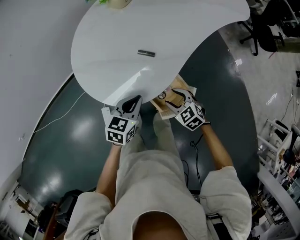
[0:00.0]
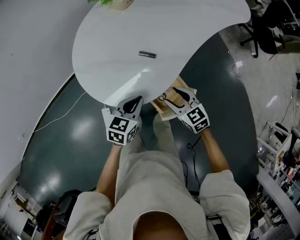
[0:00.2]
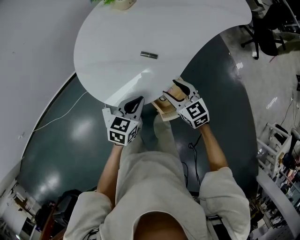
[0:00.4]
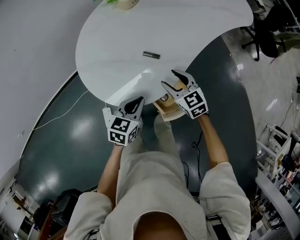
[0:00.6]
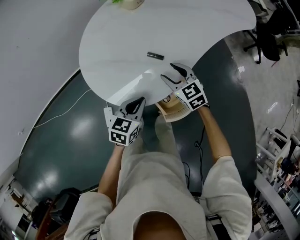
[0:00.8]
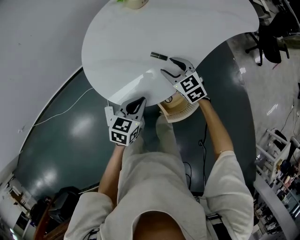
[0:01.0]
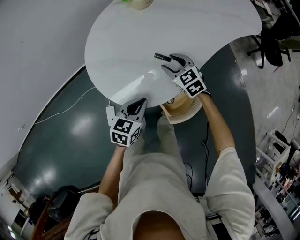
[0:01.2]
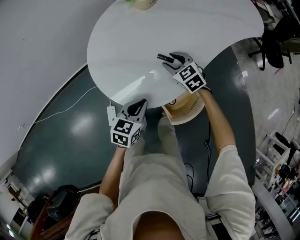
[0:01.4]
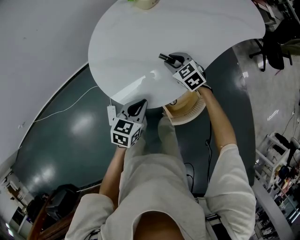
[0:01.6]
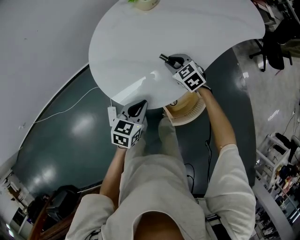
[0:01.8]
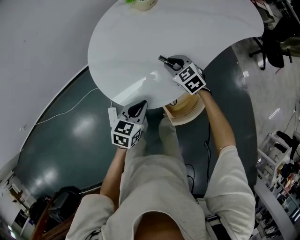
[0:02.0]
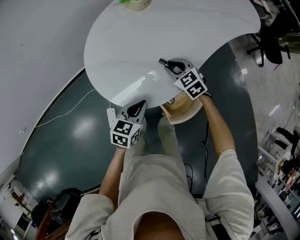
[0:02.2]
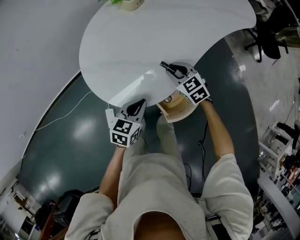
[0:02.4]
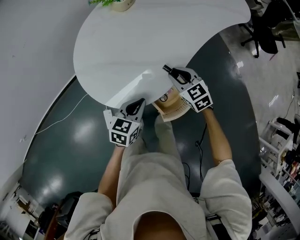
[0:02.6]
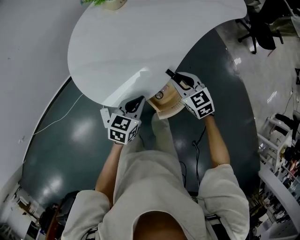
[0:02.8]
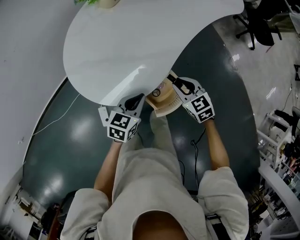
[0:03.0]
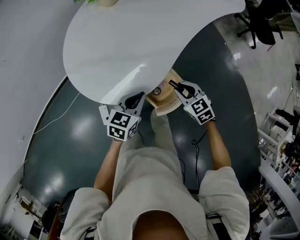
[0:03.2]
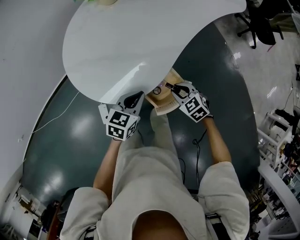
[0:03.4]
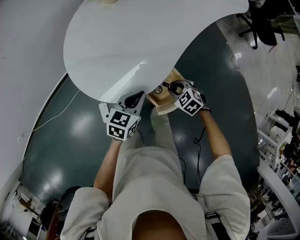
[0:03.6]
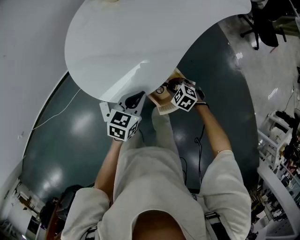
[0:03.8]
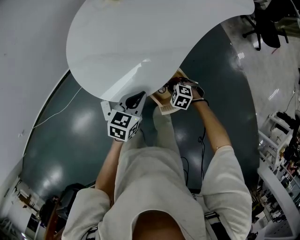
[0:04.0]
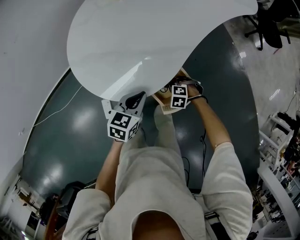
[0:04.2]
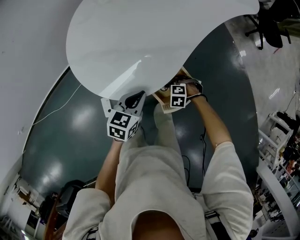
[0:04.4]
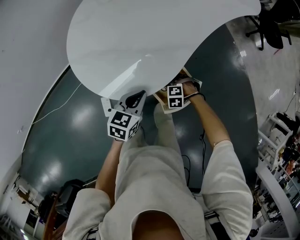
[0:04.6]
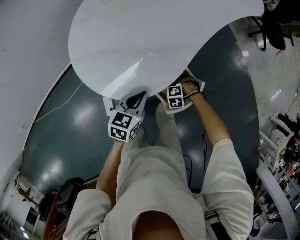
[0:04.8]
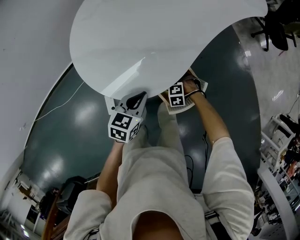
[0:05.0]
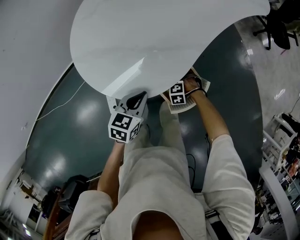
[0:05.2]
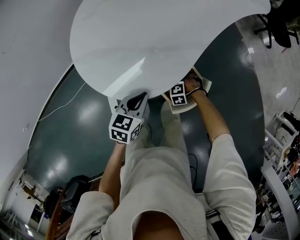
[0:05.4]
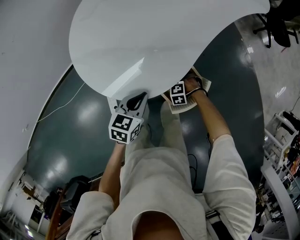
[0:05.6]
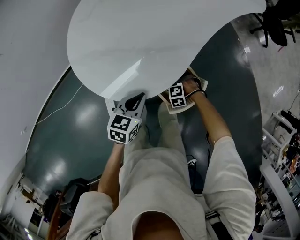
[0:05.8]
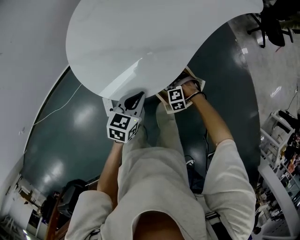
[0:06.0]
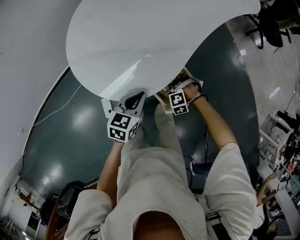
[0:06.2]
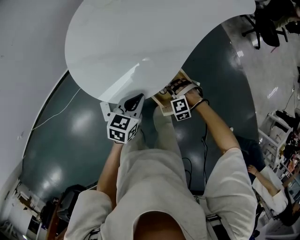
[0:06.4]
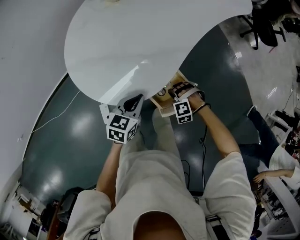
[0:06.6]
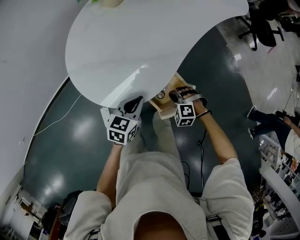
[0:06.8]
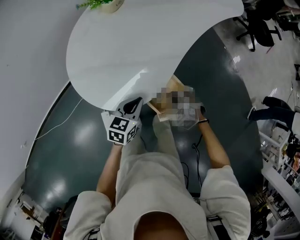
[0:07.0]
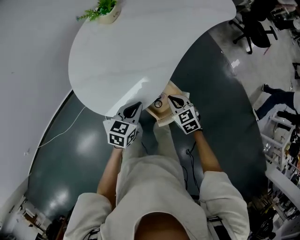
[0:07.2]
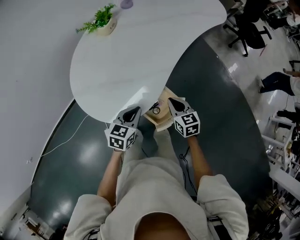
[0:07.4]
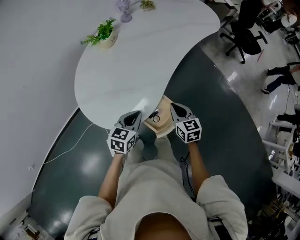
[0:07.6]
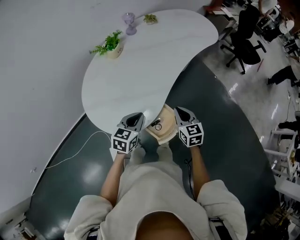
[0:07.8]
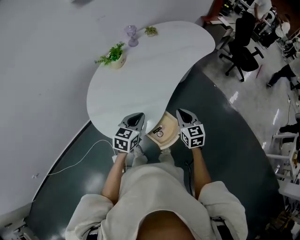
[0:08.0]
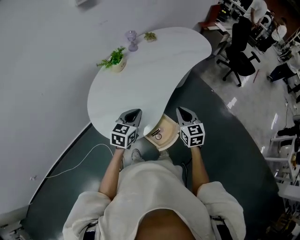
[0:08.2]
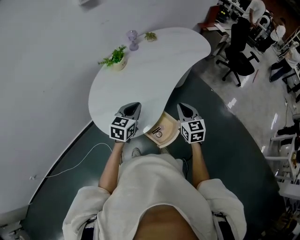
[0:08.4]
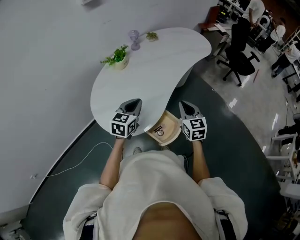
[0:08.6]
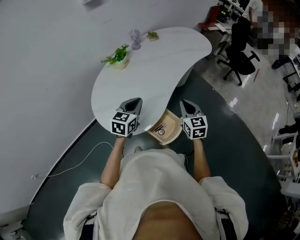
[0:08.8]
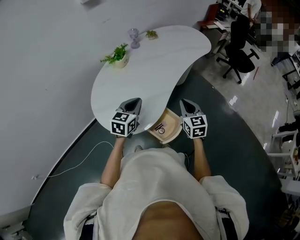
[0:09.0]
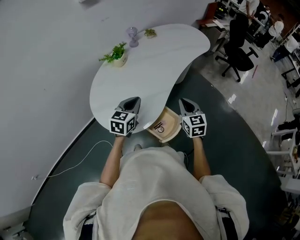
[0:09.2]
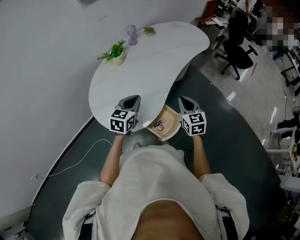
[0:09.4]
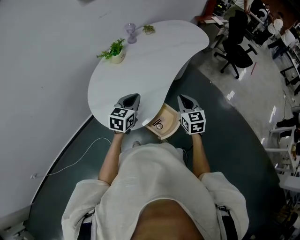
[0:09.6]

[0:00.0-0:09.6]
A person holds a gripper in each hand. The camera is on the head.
0:00.0 to 0:01.6: The right gripper goes some 20 cm forward. The left gripper moves roughly 5 cm.
0:01.6 to 0:03.2: The left gripper moves to the right, approximately 10 cm, while the right gripper is displaced backward and to the right by some 25 cm.
0:03.2 to 0:04.8: The right gripper heads downward, covering some 20 cm, and tilts its fingers roughly 40 degrees downward, while the left gripper shifts by approximately 5 cm.
0:04.8 to 0:06.4: The right gripper moves upward, approximately 5 cm, and opens and closes again.
0:06.4 to 0:08.0: The right gripper heads upward, covering about 30 cm, and rolls clockwise, seen from behind, by roughly 90 degrees, while the left gripper shifts some 15 cm upward.
0:08.0 to 0:09.6: The left gripper moves roughly 5 cm.

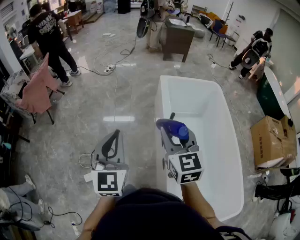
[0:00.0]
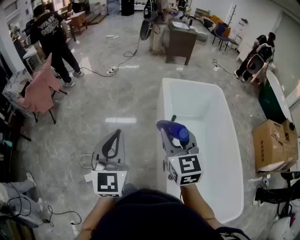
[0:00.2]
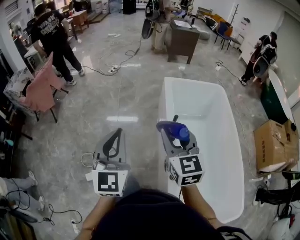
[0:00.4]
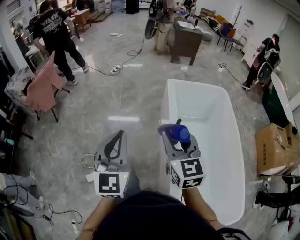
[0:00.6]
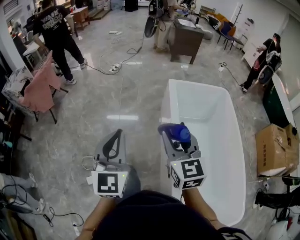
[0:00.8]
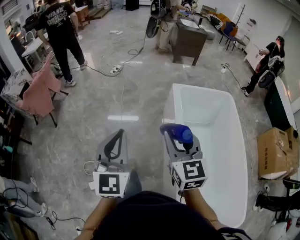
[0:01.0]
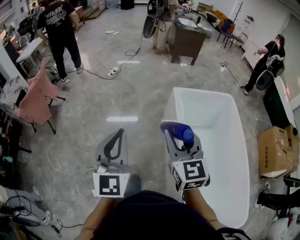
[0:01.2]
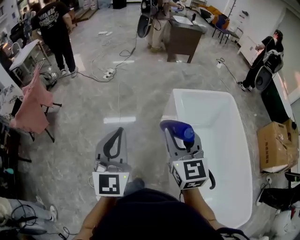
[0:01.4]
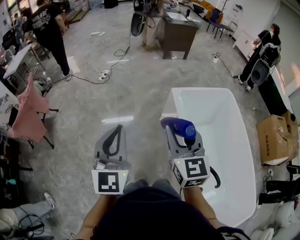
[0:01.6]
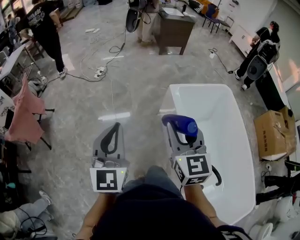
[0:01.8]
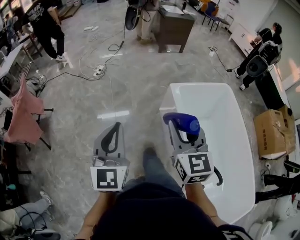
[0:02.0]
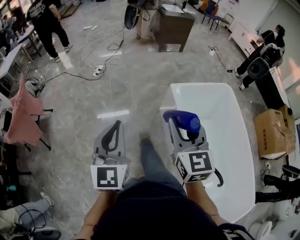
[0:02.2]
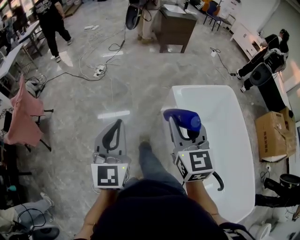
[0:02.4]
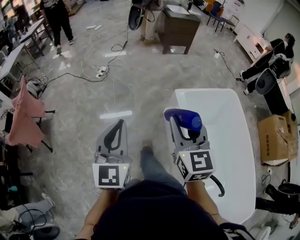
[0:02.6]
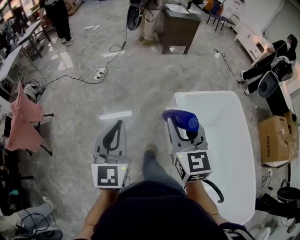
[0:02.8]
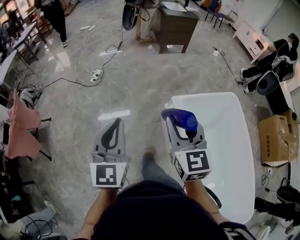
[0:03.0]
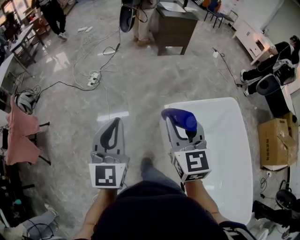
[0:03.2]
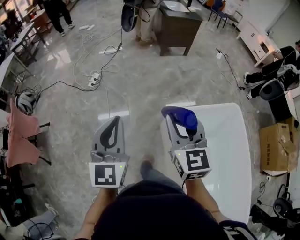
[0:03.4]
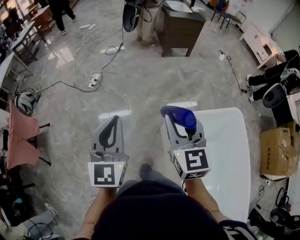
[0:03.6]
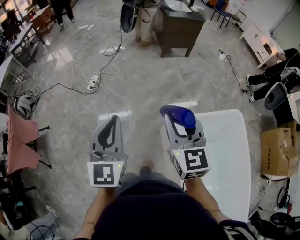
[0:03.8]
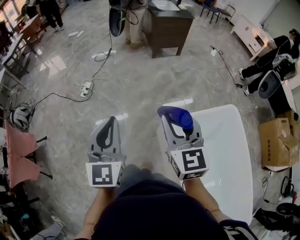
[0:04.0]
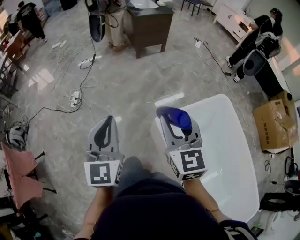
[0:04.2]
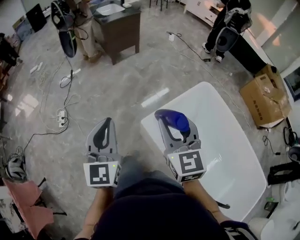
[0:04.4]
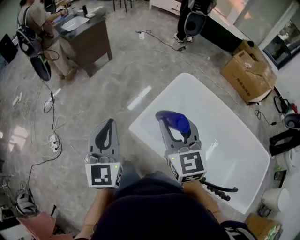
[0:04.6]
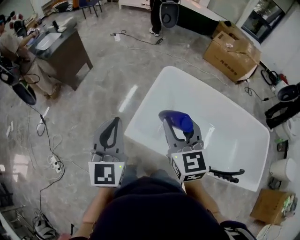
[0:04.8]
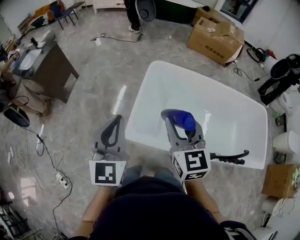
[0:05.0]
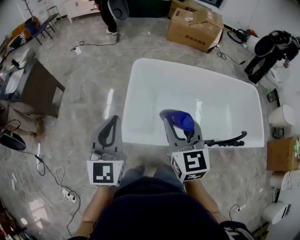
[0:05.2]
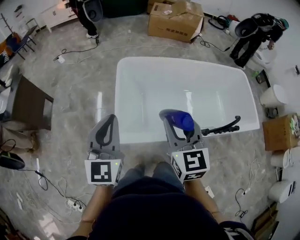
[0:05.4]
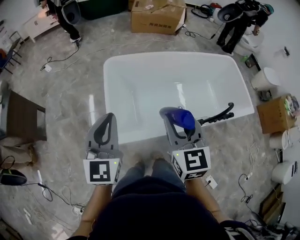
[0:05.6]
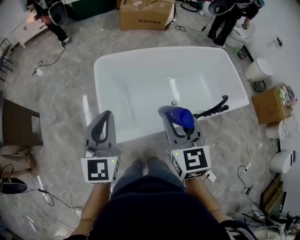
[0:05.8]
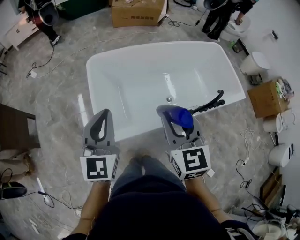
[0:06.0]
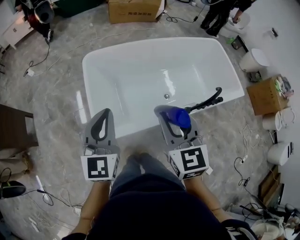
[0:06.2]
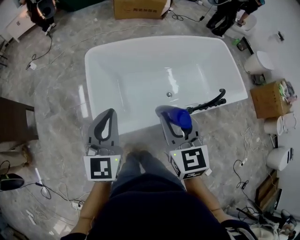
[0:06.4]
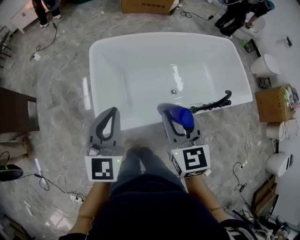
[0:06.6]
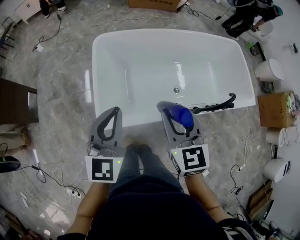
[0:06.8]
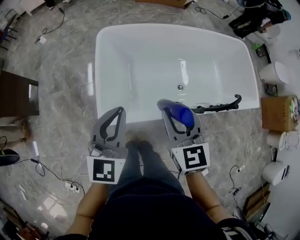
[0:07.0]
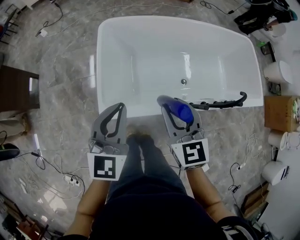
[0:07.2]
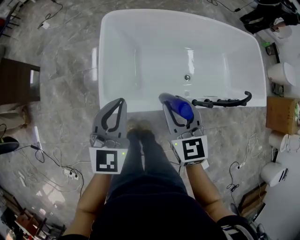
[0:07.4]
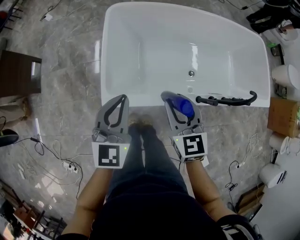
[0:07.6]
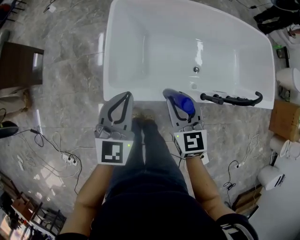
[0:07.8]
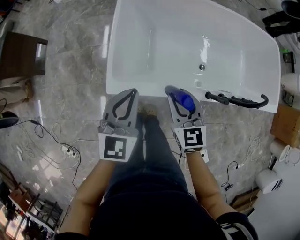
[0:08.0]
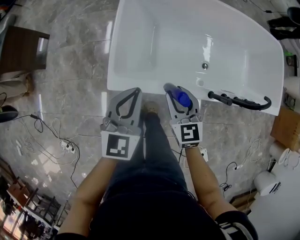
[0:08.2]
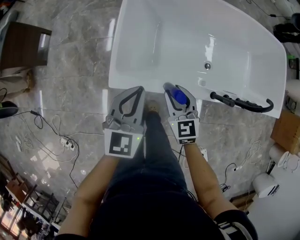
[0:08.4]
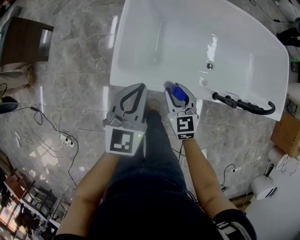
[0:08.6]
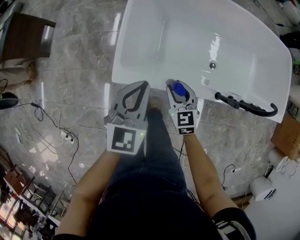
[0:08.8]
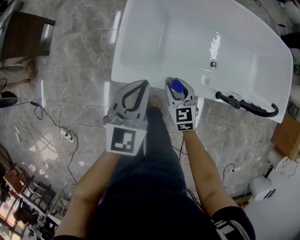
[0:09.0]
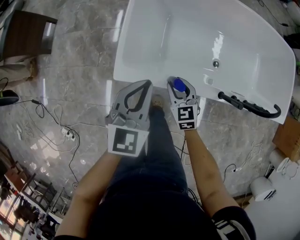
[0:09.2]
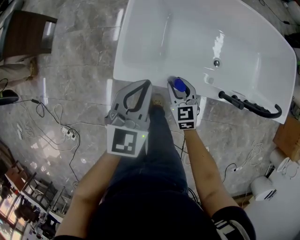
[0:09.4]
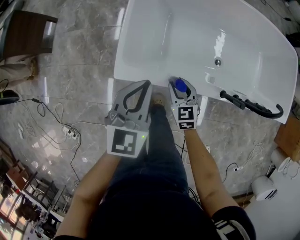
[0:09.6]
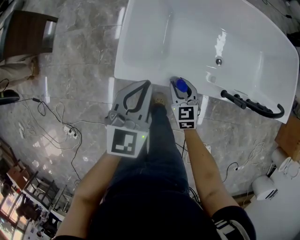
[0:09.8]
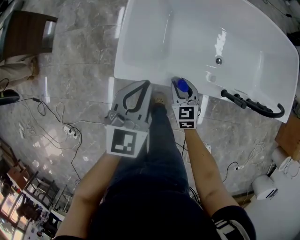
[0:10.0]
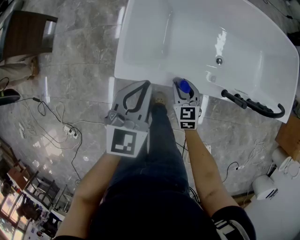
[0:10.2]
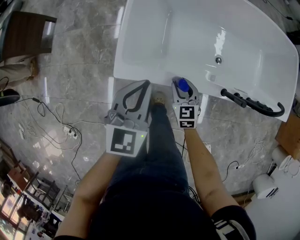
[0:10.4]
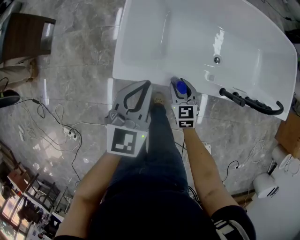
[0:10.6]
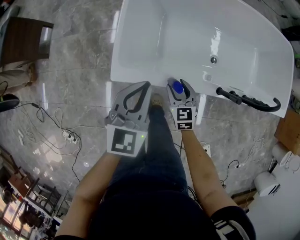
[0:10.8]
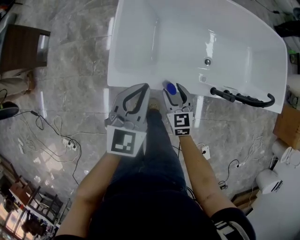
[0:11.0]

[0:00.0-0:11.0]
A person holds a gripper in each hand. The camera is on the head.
0:00.0 to 0:01.6: The two grippers go approximately 30 cm forward.
0:01.6 to 0:03.2: The grippers both shift forward by approximately 30 cm.
0:03.2 to 0:04.8: The right gripper moves approximately 25 cm, and turns by some 50 degrees. The left gripper shifts by roughly 35 cm, and rotates roughly 50 degrees.
0:04.8 to 0:06.2: The left gripper ends up roughly 15 cm from where it was, and rotates roughly 40 degrees. Meanwhile the right gripper ends up about 15 cm from where it was, and rotates roughly 40 degrees.
0:06.2 to 0:07.8: The two grippers go some 20 cm downward.
0:07.8 to 0:09.4: The right gripper is displaced downward by approximately 20 cm. Meanwhile the left gripper moves downward, about 5 cm.
0:09.4 to 0:11.0: The grippers stay close to where they were, moving slightly.

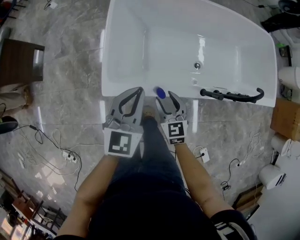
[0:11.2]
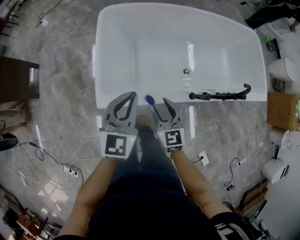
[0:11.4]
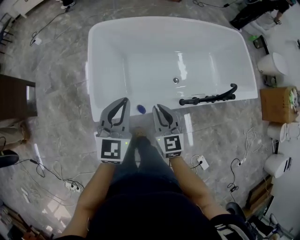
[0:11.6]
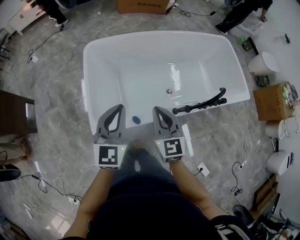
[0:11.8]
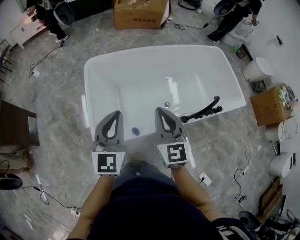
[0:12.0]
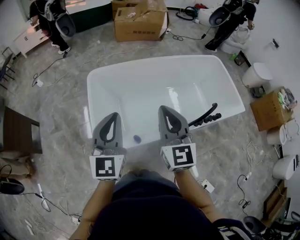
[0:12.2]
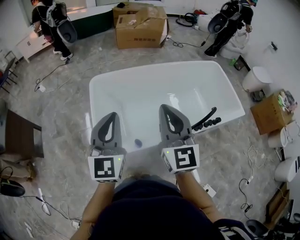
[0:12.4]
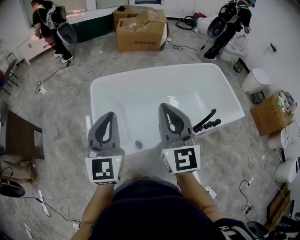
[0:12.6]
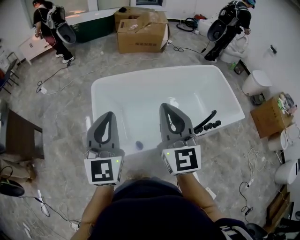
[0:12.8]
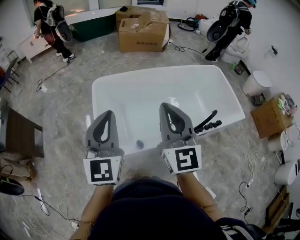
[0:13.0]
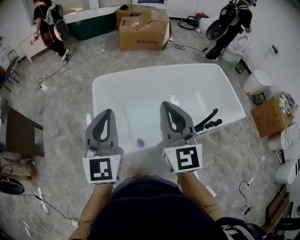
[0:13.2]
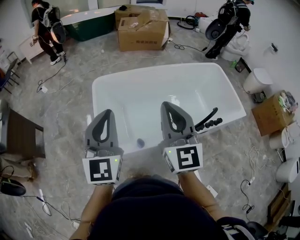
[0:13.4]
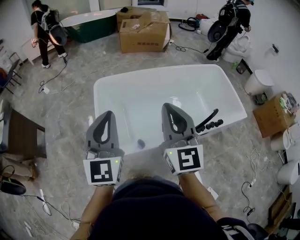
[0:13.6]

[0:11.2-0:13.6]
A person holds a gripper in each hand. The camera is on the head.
0:11.2 to 0:12.4: The left gripper shifts roughly 25 cm upward, and rotates approximately 20 degrees. The right gripper goes approximately 40 cm upward, points its fingers some 30 degrees further upward, and closes its fingers.
0:12.4 to 0:13.6: The grippers stay close to where they were, moving slightly.
